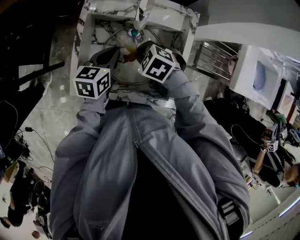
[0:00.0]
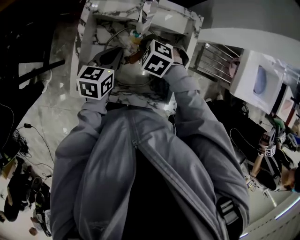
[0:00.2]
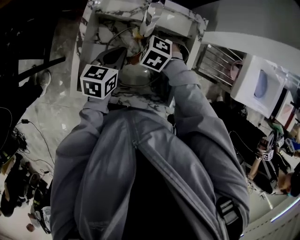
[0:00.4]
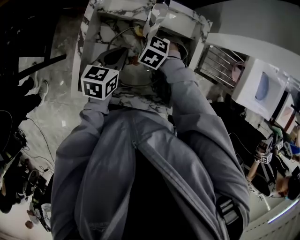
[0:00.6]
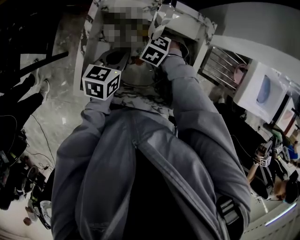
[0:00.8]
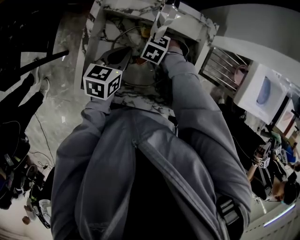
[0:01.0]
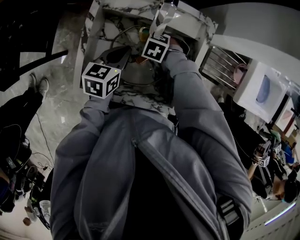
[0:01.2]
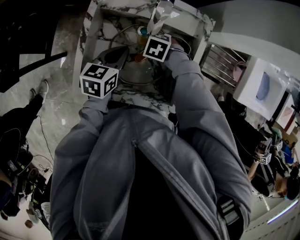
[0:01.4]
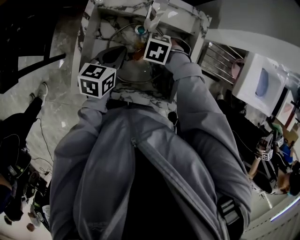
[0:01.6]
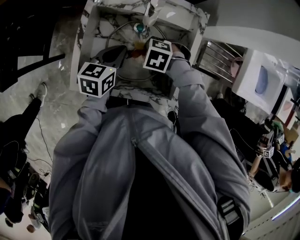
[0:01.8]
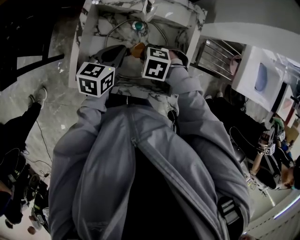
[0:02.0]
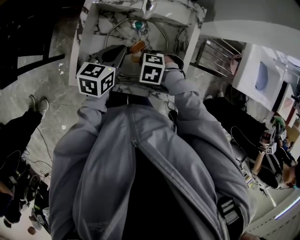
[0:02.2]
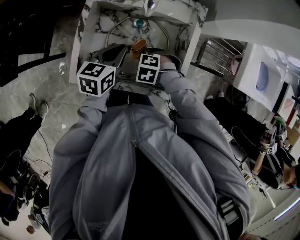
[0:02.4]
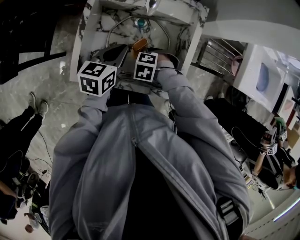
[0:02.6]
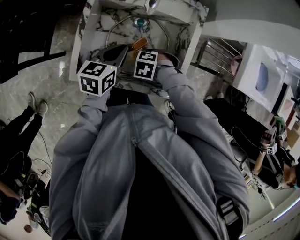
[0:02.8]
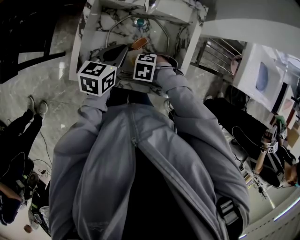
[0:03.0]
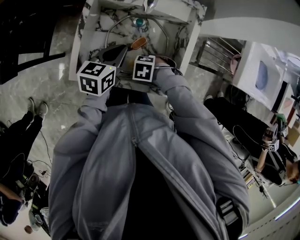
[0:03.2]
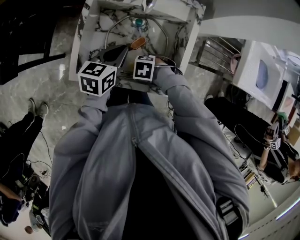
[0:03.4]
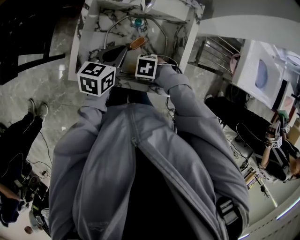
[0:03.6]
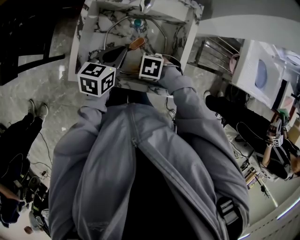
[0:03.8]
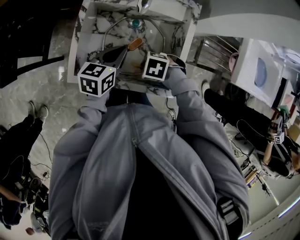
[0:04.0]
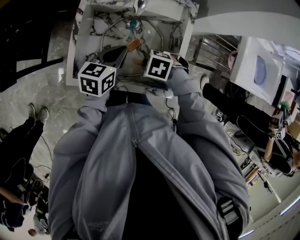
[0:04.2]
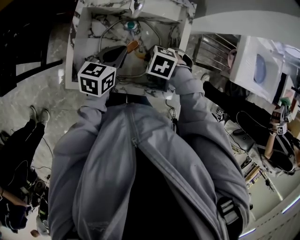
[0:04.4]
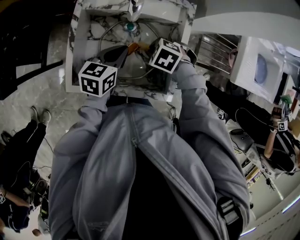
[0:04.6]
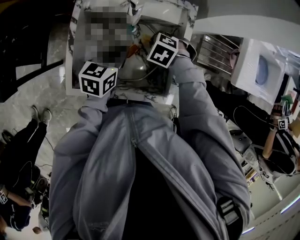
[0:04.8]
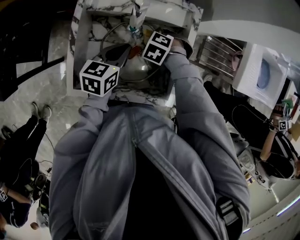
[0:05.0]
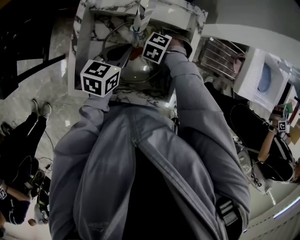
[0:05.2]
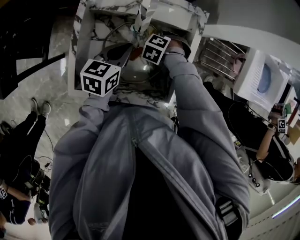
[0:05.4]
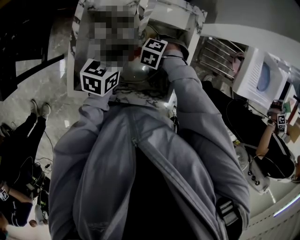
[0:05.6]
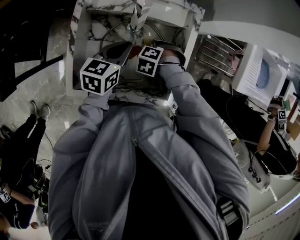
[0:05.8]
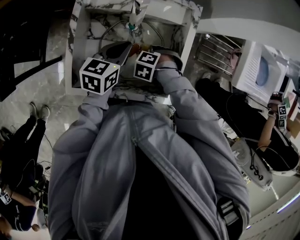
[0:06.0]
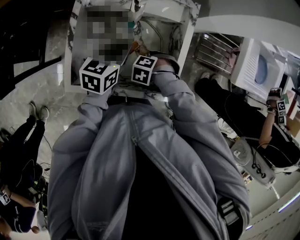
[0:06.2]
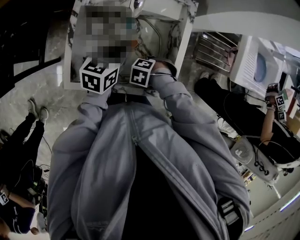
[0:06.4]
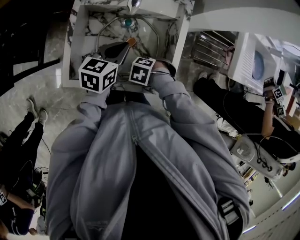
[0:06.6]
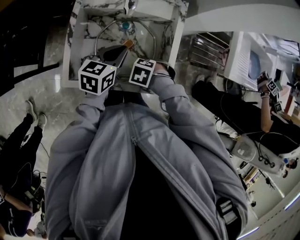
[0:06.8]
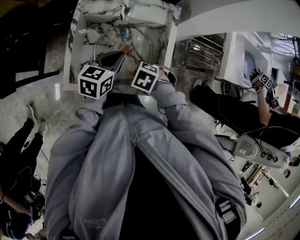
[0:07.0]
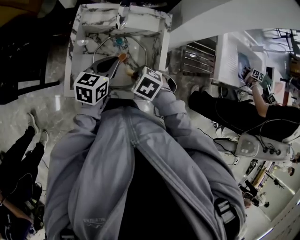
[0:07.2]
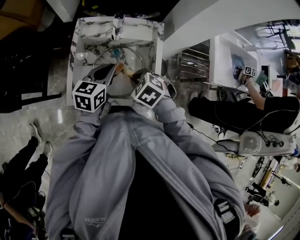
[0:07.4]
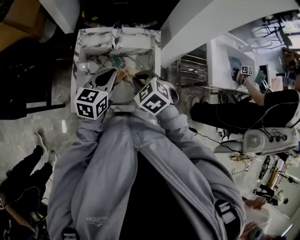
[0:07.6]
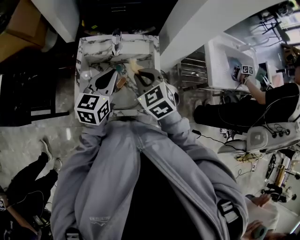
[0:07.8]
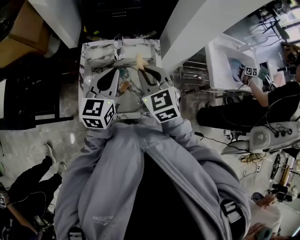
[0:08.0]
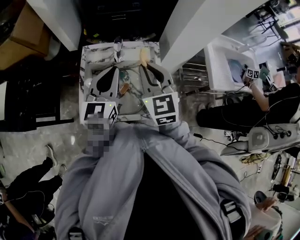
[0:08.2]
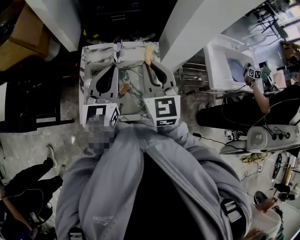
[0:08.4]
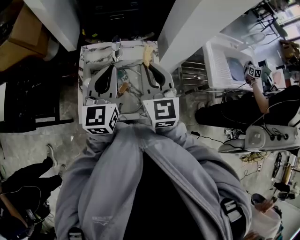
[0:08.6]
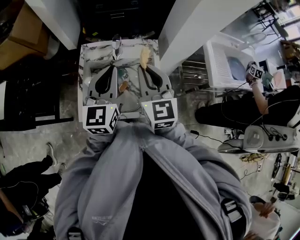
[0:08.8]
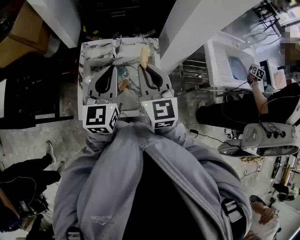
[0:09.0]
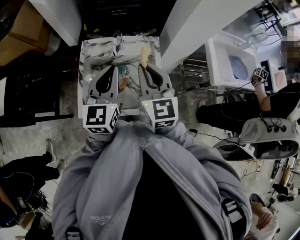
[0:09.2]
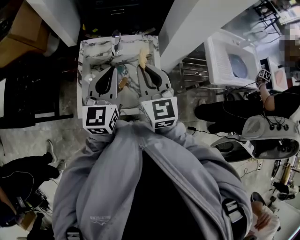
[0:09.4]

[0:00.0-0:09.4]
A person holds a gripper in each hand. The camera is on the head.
0:00.0 to 0:01.6: The right gripper shifts roughly 10 cm downward.
0:01.6 to 0:03.2: The right gripper shifts by some 15 cm, while the left gripper moves some 5 cm.
0:03.2 to 0:04.8: The left gripper changes place by some 5 cm; the right gripper changes place by some 20 cm, and swivels some 20 degrees.
0:04.8 to 0:06.2: The right gripper moves some 15 cm.
0:06.2 to 0:07.8: The left gripper is displaced upward by some 20 cm, and changes its angle by roughly 20 degrees. Meanwhile the right gripper goes approximately 35 cm upward, and points its fingers some 50 degrees further upward.
0:07.8 to 0:09.4: The grippers both shift upward by roughly 10 cm. The right gripper turns by roughly 40 degrees.

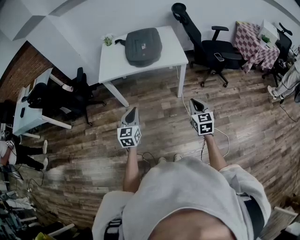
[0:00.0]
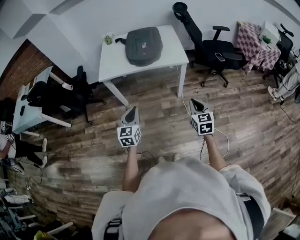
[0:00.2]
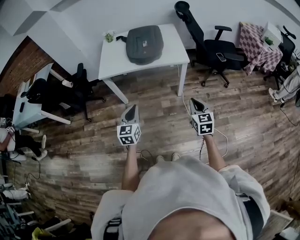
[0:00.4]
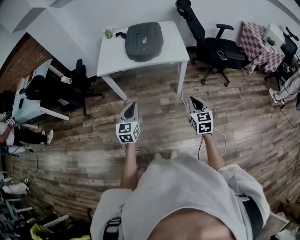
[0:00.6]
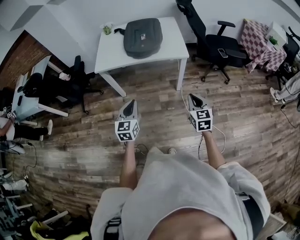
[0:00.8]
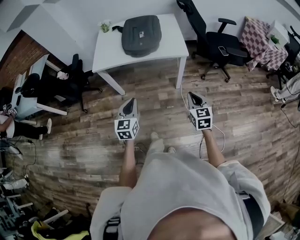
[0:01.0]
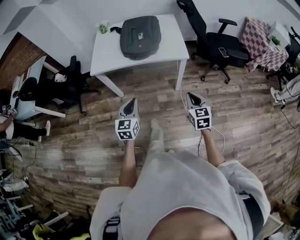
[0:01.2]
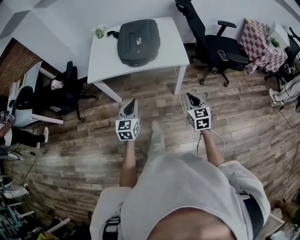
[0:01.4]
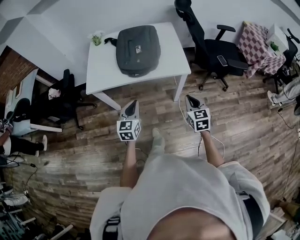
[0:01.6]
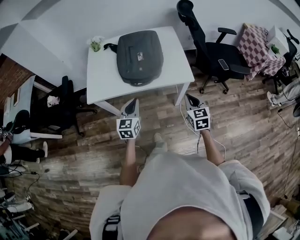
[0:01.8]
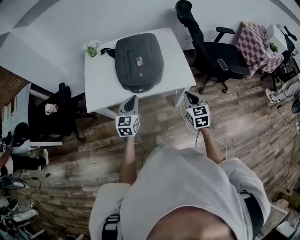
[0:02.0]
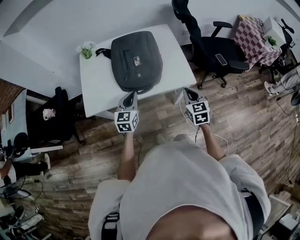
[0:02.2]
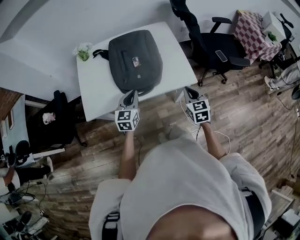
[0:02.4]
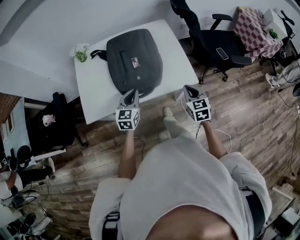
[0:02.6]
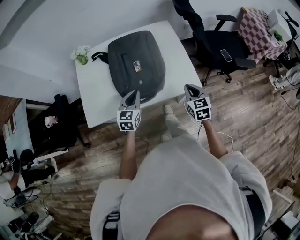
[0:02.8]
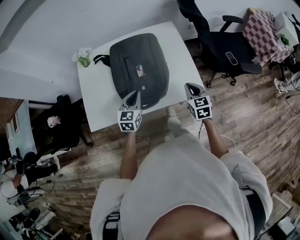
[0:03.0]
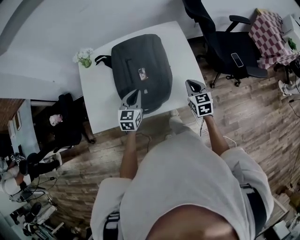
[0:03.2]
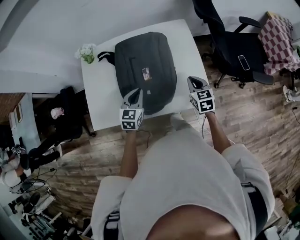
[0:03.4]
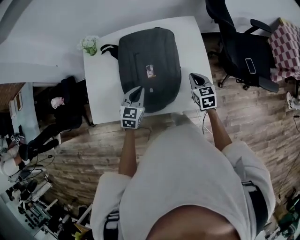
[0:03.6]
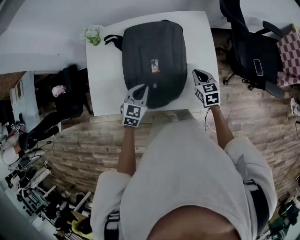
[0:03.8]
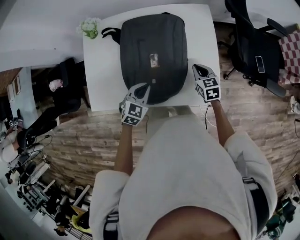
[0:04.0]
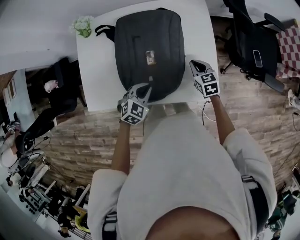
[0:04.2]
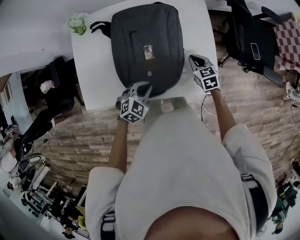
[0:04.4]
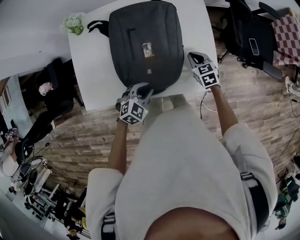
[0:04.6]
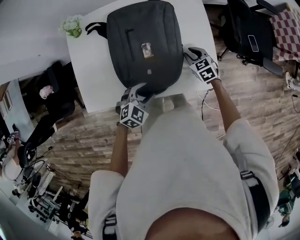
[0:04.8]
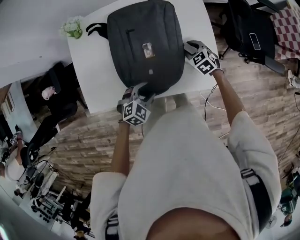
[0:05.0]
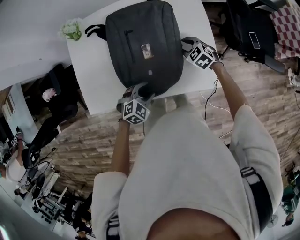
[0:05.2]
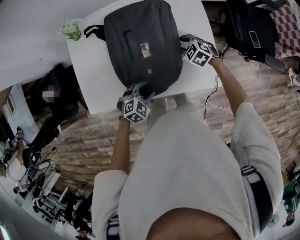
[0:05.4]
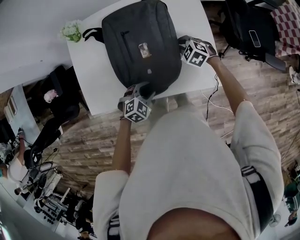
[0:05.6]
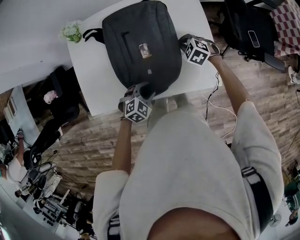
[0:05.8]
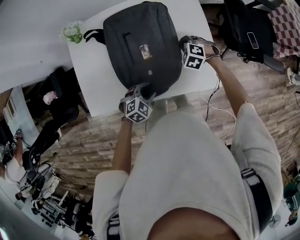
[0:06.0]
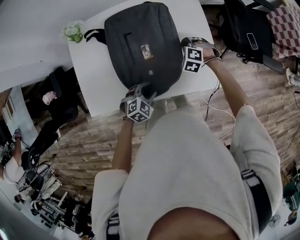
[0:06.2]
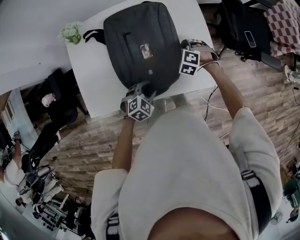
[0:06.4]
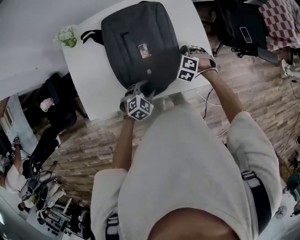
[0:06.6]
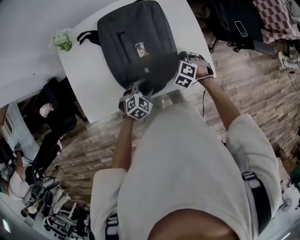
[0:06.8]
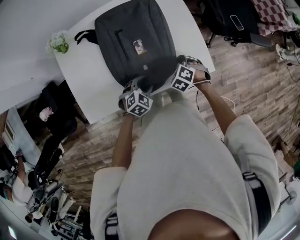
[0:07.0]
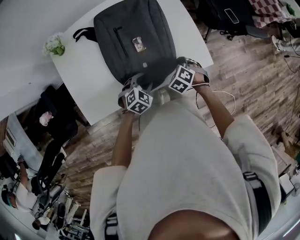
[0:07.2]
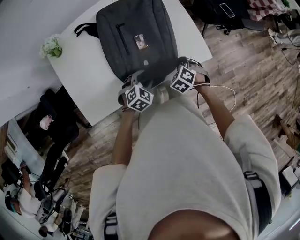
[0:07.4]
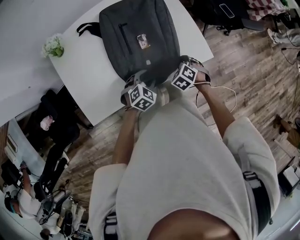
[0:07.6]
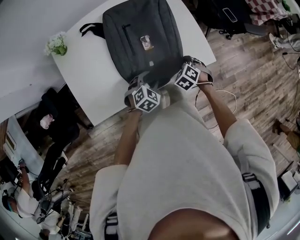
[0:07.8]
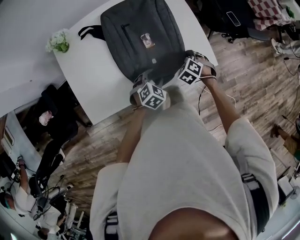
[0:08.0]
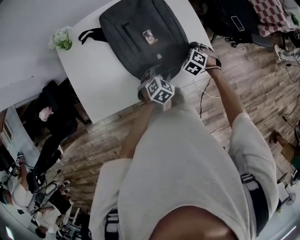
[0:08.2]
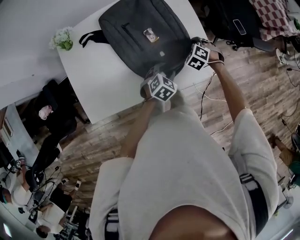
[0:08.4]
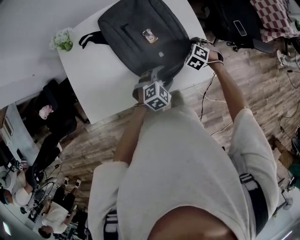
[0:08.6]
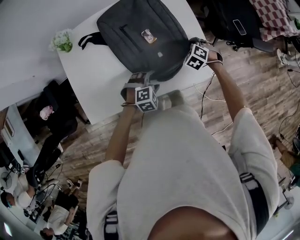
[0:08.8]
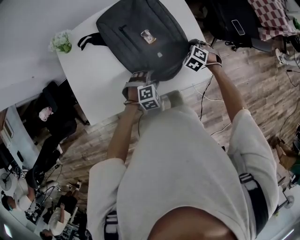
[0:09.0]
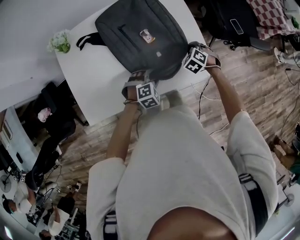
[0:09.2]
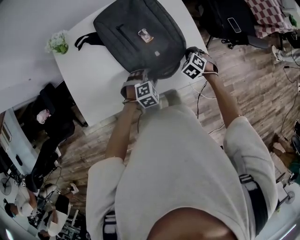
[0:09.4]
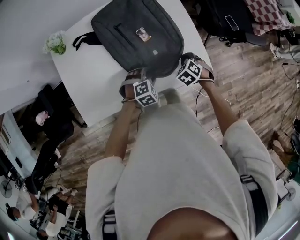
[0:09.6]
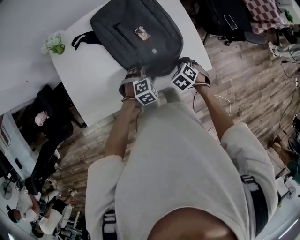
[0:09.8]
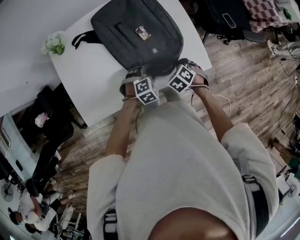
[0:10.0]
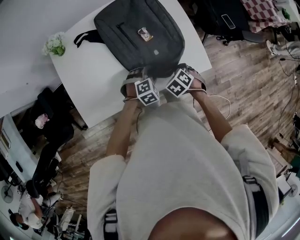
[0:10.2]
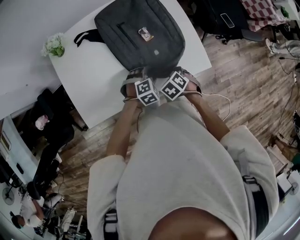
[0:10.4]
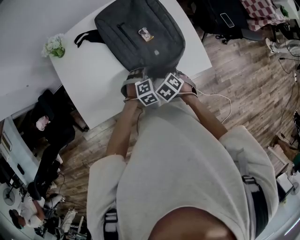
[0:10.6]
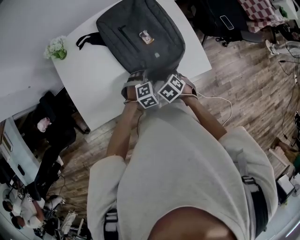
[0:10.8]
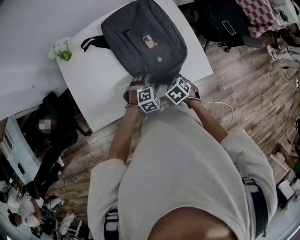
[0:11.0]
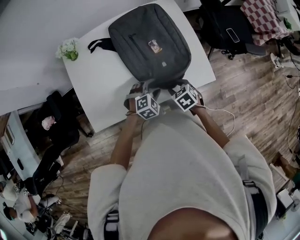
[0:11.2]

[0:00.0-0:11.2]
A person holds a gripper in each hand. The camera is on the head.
0:00.0 to 0:01.6: The grippers both shift forward by approximately 20 cm.
0:01.6 to 0:03.2: Both grippers travel together forward, some 35 cm.
0:03.2 to 0:04.8: The left gripper heads downward and backward, covering about 10 cm, changes its angle by about 40 degrees, and opens up, while the right gripper travels downward and forward by approximately 15 cm, swivels approximately 30 degrees, and opens up.
0:04.8 to 0:06.4: The right gripper twists approximately 40 degrees counterclockwise, seen from behind, and closes, while the left gripper moves about 5 cm.
0:06.4 to 0:08.0: The right gripper heads backward and to the right, covering some 15 cm, and swivels about 30 degrees.
0:08.0 to 0:09.6: The left gripper swivels roughly 20 degrees; the right gripper goes forward and returns, about 10 cm each way.
0:09.6 to 0:11.2: The right gripper ends up approximately 15 cm from where it was, rotates roughly 30 degrees, and opens its fingers.

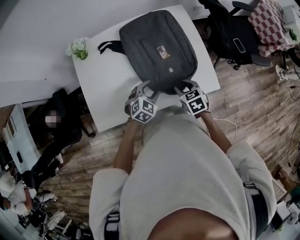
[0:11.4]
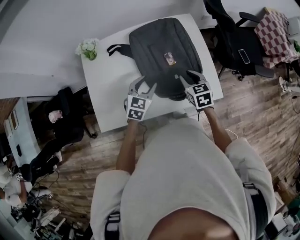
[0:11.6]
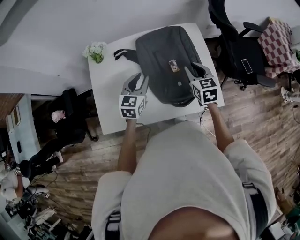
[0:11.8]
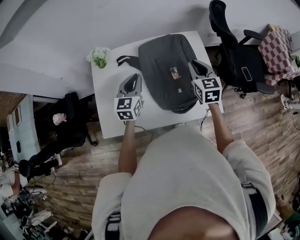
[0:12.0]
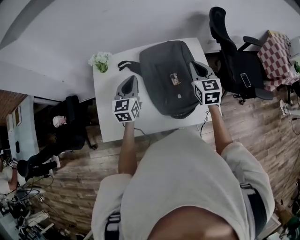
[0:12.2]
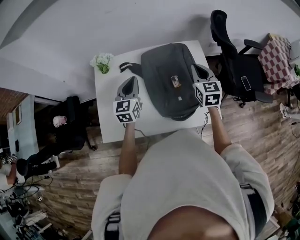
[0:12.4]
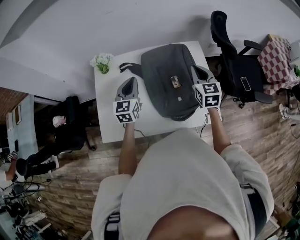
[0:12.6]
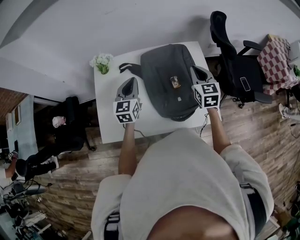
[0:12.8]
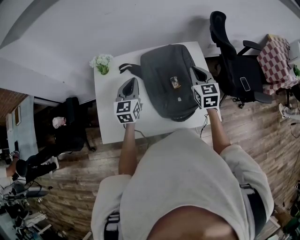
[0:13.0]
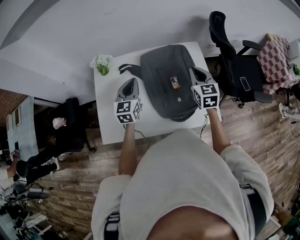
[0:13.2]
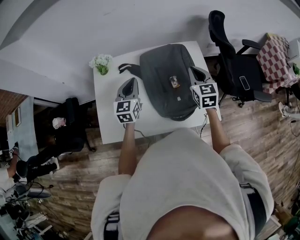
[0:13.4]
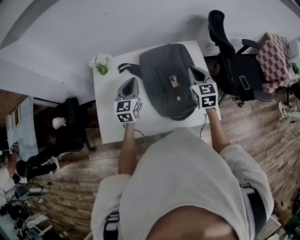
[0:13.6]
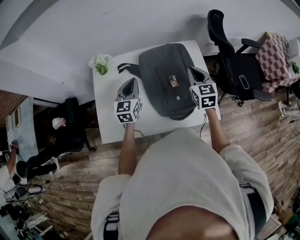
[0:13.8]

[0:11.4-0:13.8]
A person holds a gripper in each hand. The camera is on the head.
0:11.4 to 0:12.6: The left gripper shifts about 25 cm upward, to the left and forward, tilts its fingers some 30 degrees upward, and closes its fingers. The right gripper shifts about 25 cm upward and forward, tips its fingers upward by some 30 degrees, and closes its fingers.
0:12.6 to 0:13.8: There are only small adjustments of the grippers.
